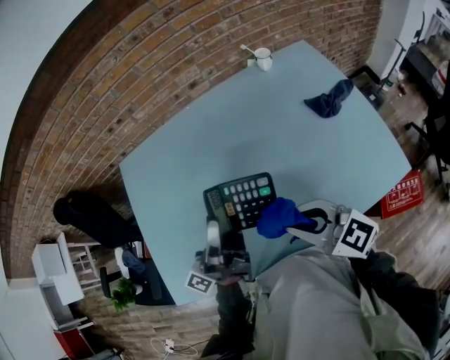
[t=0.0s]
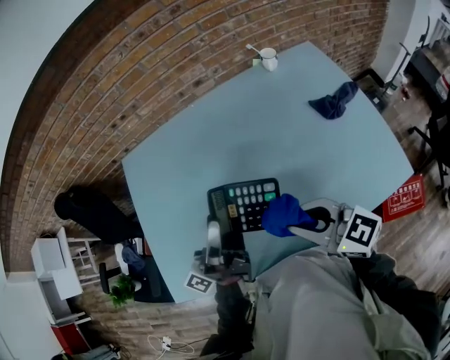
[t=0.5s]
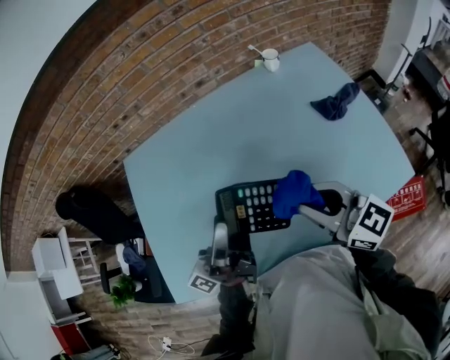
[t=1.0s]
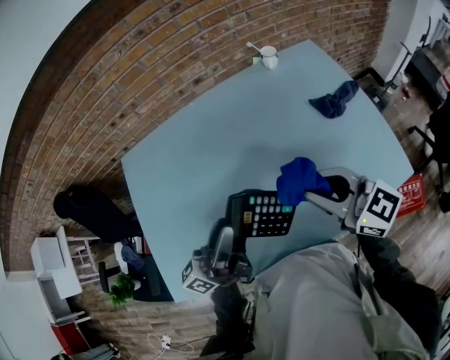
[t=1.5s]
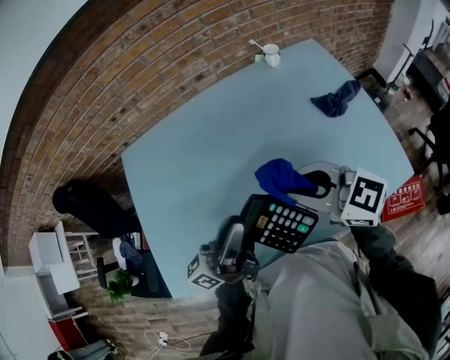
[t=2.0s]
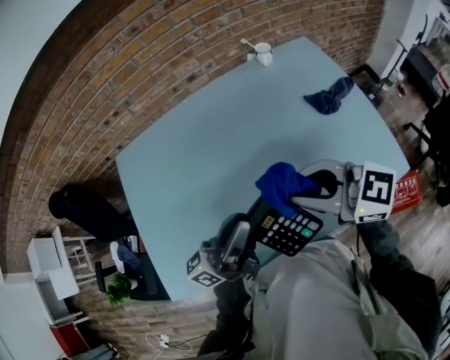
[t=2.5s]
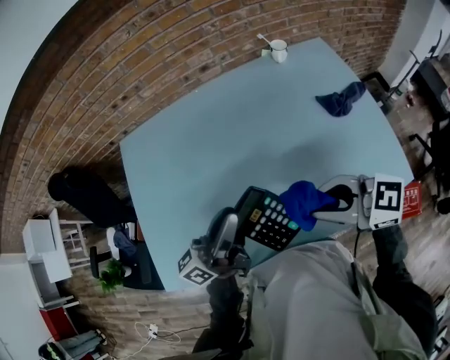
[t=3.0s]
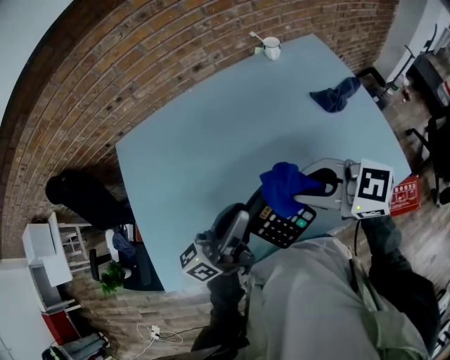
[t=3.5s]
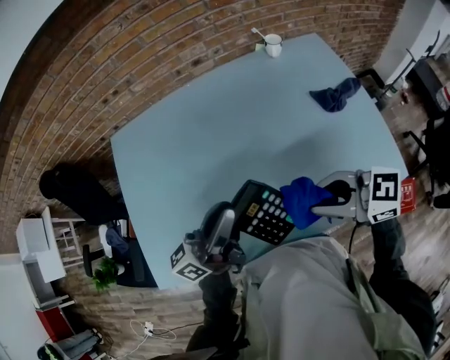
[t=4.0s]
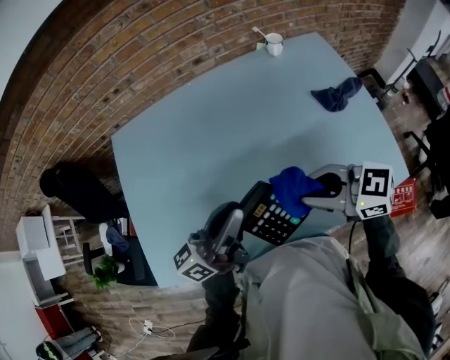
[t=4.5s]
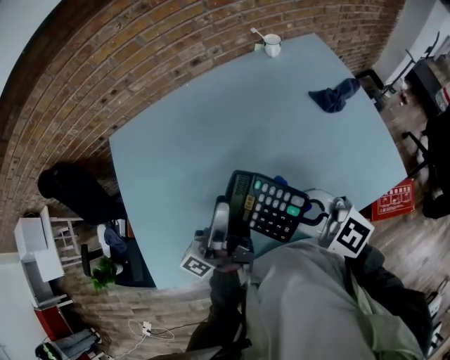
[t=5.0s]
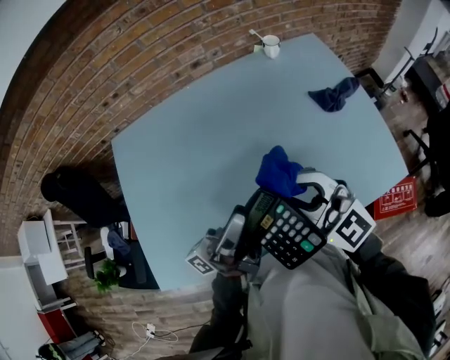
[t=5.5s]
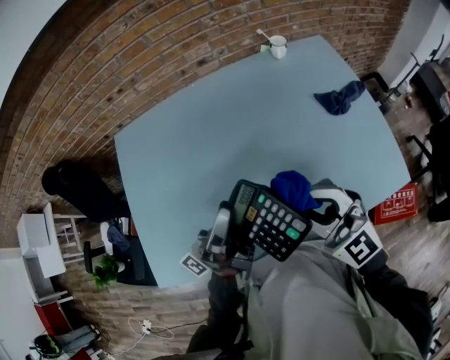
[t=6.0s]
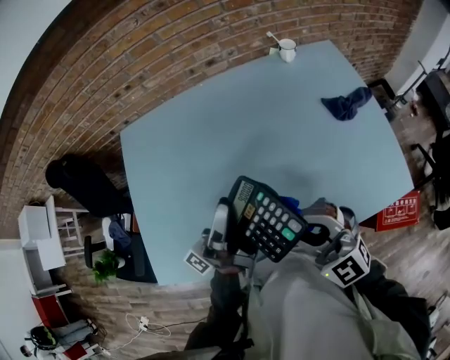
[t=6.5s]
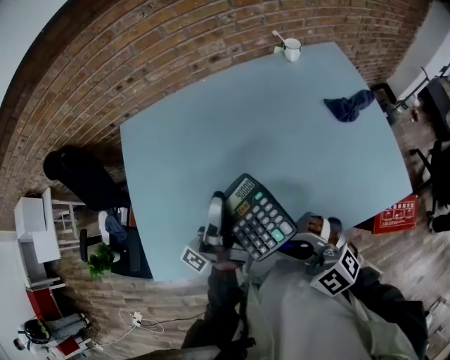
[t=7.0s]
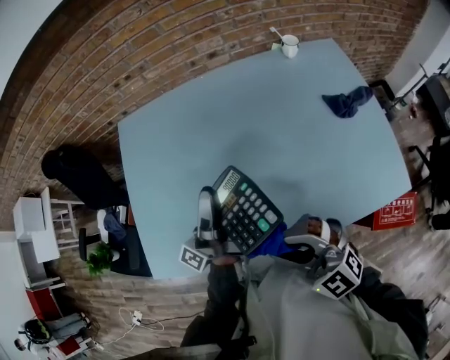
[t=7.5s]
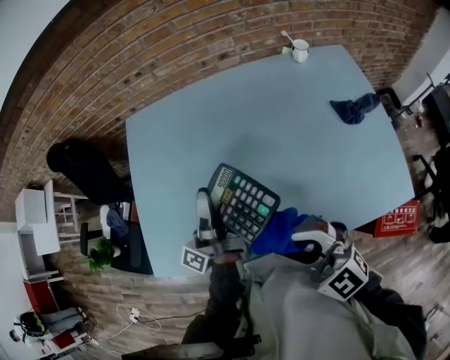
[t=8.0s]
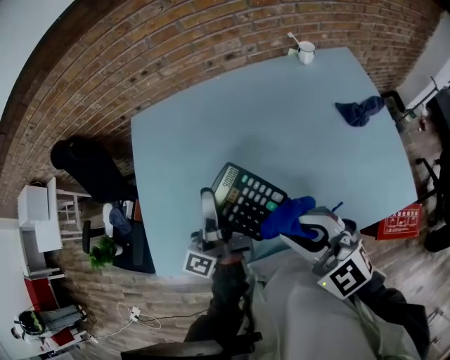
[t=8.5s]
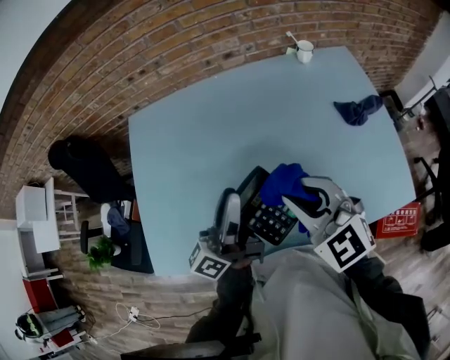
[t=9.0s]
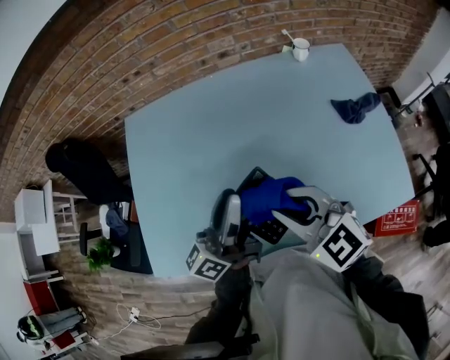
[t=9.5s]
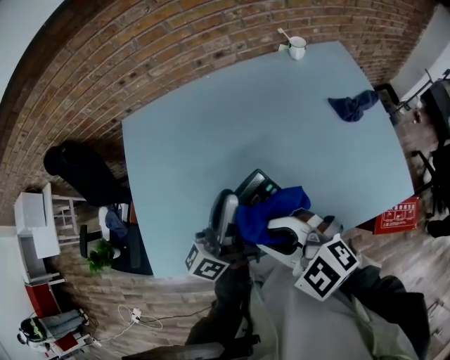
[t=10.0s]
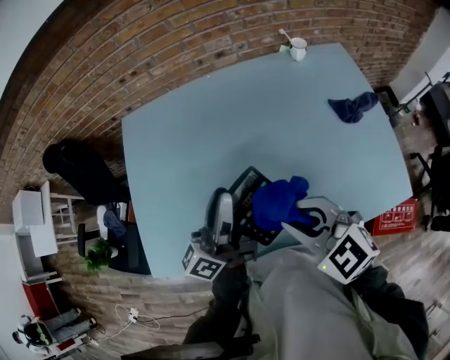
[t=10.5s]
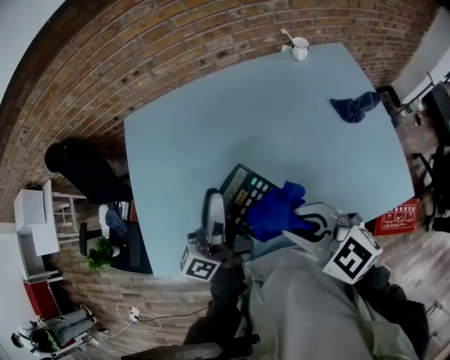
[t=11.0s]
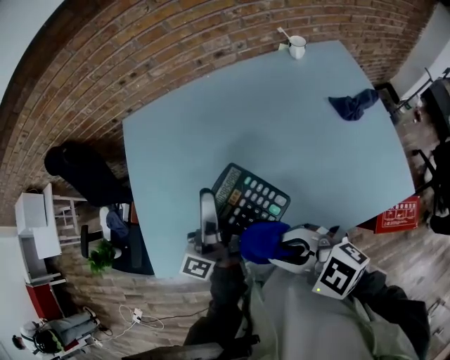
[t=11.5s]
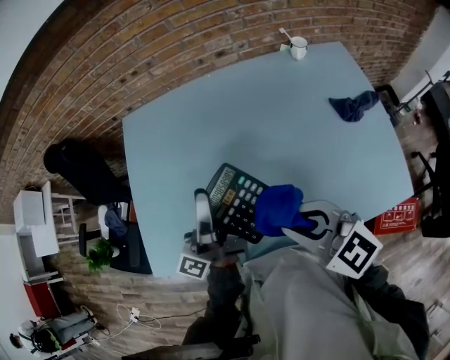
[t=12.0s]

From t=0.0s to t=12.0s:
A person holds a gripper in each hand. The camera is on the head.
From t=0.0s to t=2.0s: The right gripper goes approximately 5 cm forward. Meanwhile the left gripper shifts by about 5 cm, and turns by roughly 20 degrees.
From t=2.0s to t=4.0s: The right gripper swings forward and backward, approximately 5 cm each way, with 2 reversals, and changes its angle by approximately 20 degrees.
From t=4.0s to t=6.0s: The right gripper changes its angle by approximately 50 degrees. The left gripper changes its angle by approximately 30 degrees.
From t=6.0s to t=8.0s: The right gripper moves to the left, approximately 10 cm, while the left gripper shifts roughly 10 cm to the left and forward, and rotates roughly 30 degrees.
From t=8.0s to t=10.0s: The right gripper swivels roughly 20 degrees, while the left gripper heads to the right, covering roughly 5 cm, and changes its angle by roughly 40 degrees.
From t=10.0s to t=12.0s: The left gripper moves some 5 cm, and swivels roughly 20 degrees. The right gripper swings left and right, some 5 cm each way, with 2 reversals.

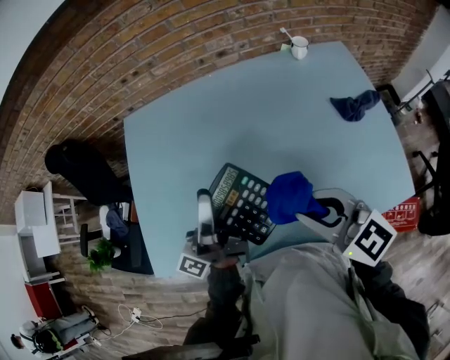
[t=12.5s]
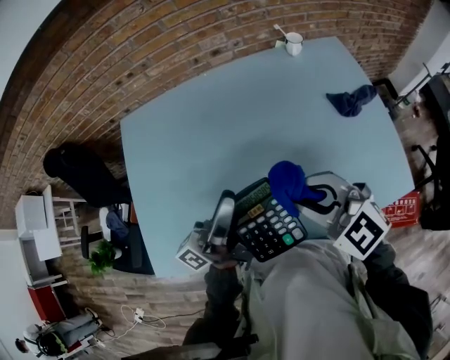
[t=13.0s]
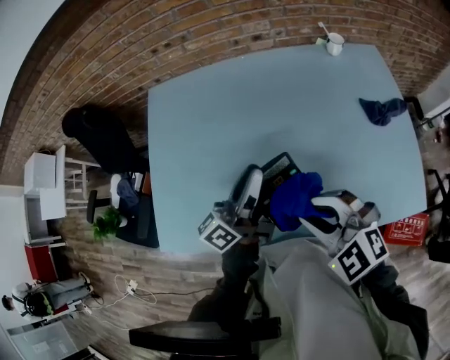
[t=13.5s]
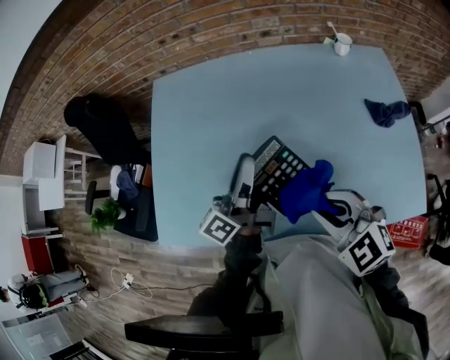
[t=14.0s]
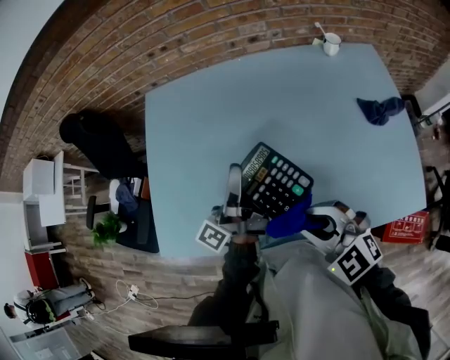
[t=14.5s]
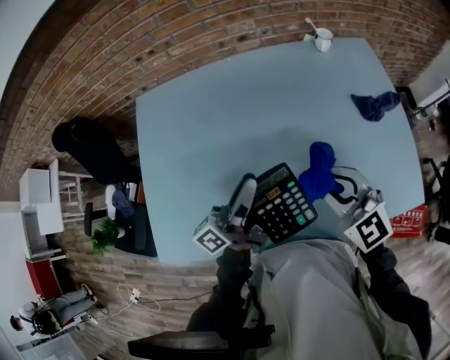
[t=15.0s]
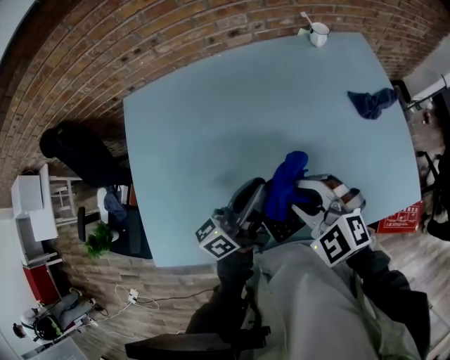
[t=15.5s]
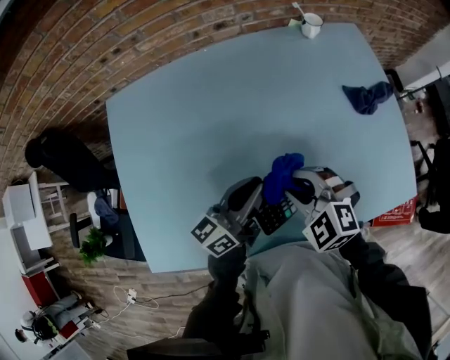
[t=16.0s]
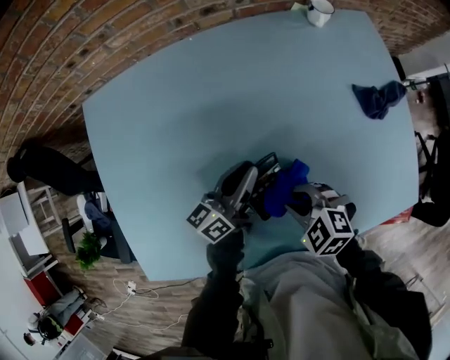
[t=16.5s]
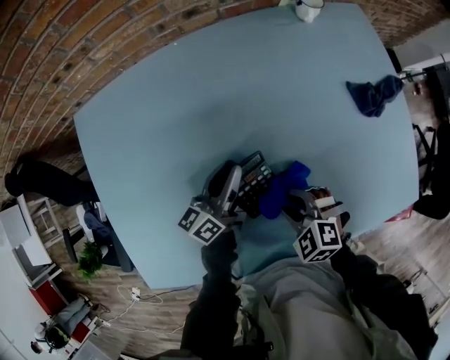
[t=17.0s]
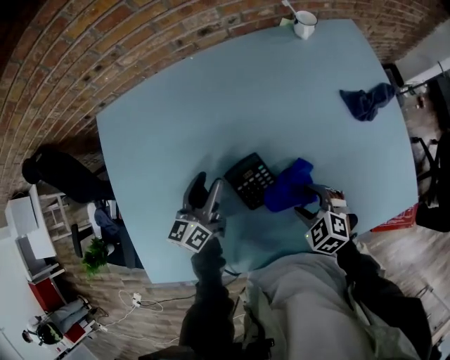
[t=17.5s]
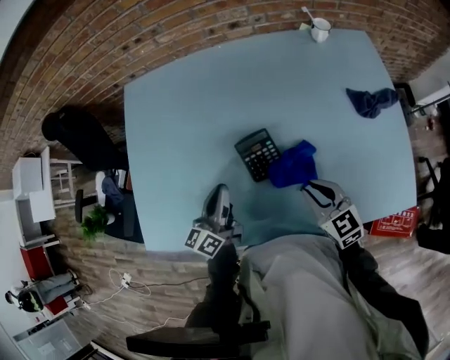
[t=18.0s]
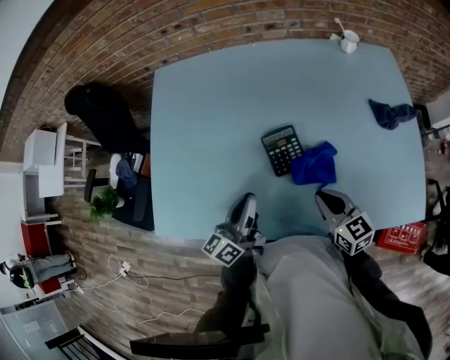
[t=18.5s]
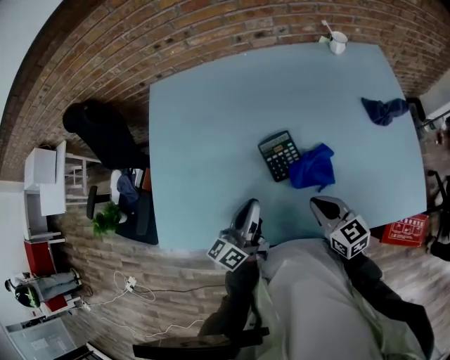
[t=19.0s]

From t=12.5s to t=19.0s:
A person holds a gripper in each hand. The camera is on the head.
From t=12.5s to t=14.5s: The left gripper heads downward, covering roughly 5 cm. The right gripper heads downward and to the left, covering approximately 10 cm, and changes its angle by some 30 degrees.
From t=14.5s to t=17.0s: Both grippers move downward, about 20 cm. The left gripper turns by about 50 degrees; the right gripper changes its angle by some 30 degrees.
From t=17.0s to t=19.0s: The left gripper travels backward and to the left by about 25 cm, and opens, then closes again; the right gripper travels backward and upward by approximately 15 cm, points its fingers some 30 degrees further upward, and closes its fingers.

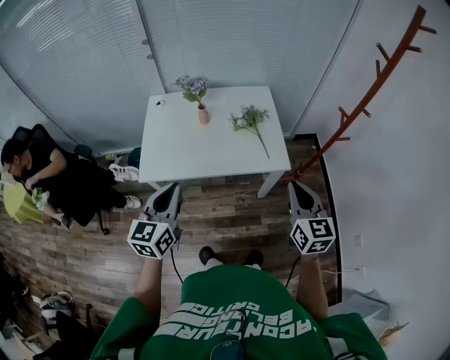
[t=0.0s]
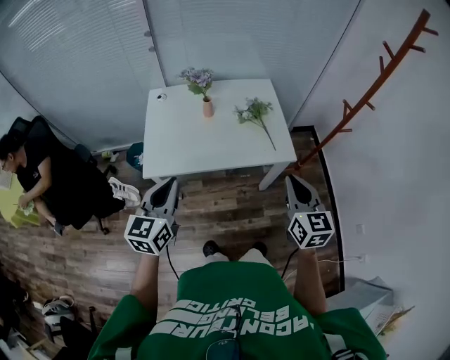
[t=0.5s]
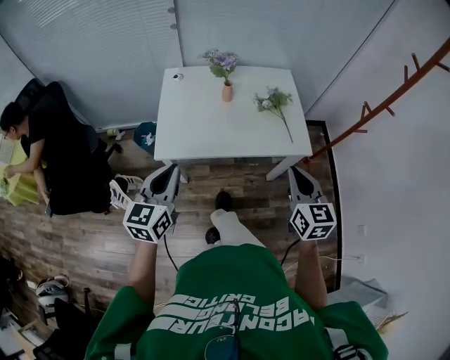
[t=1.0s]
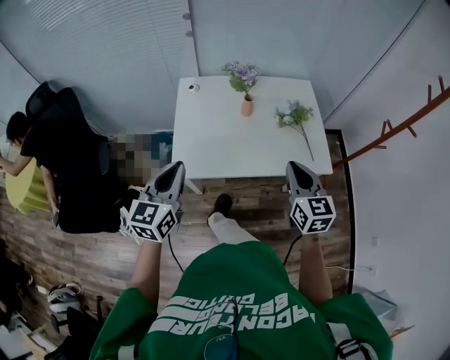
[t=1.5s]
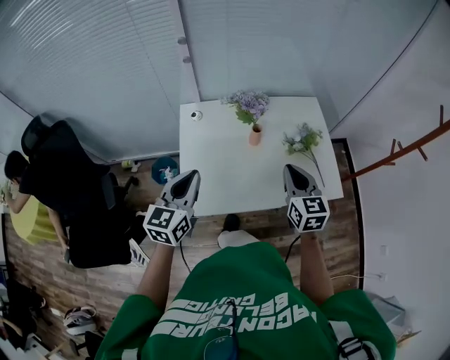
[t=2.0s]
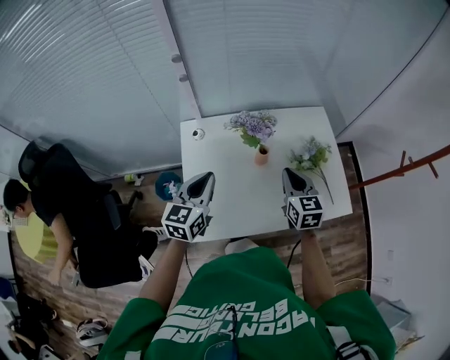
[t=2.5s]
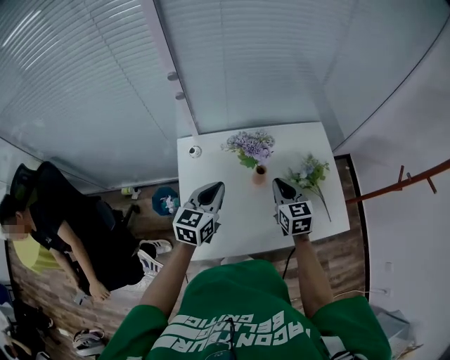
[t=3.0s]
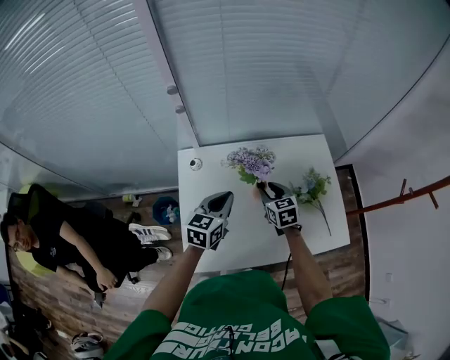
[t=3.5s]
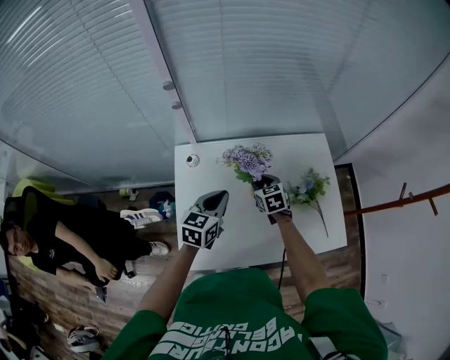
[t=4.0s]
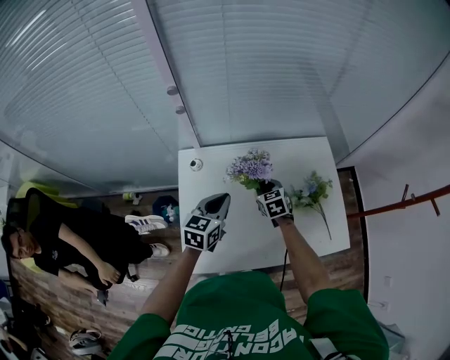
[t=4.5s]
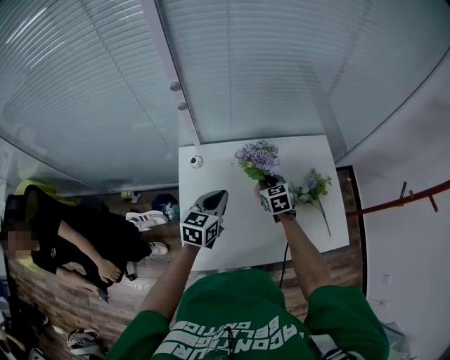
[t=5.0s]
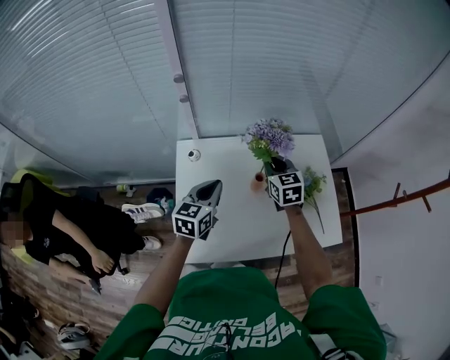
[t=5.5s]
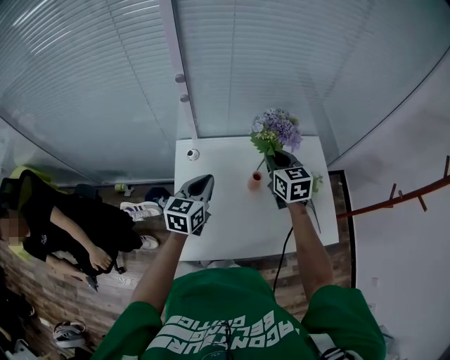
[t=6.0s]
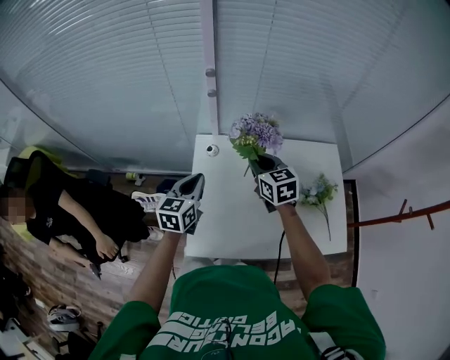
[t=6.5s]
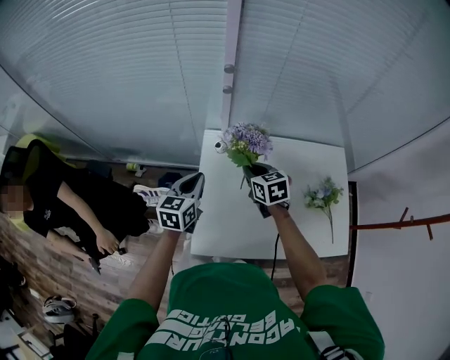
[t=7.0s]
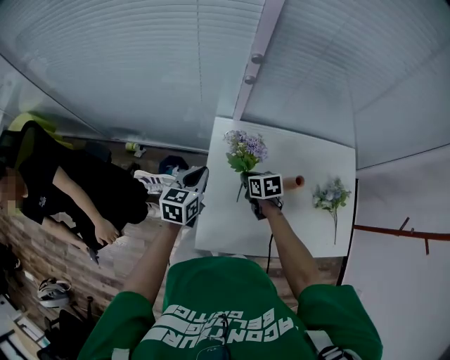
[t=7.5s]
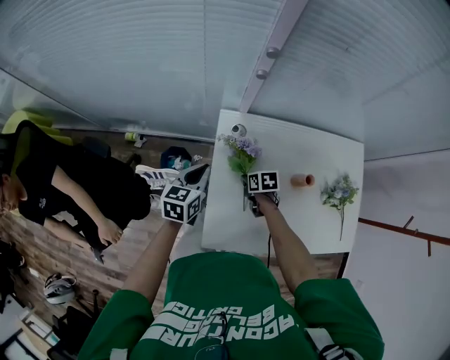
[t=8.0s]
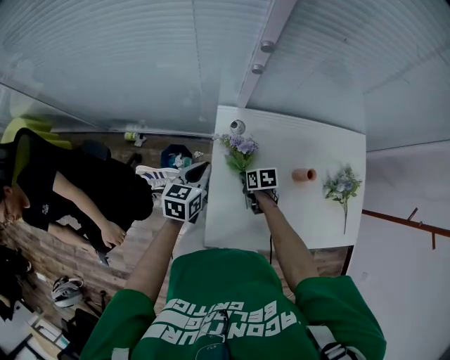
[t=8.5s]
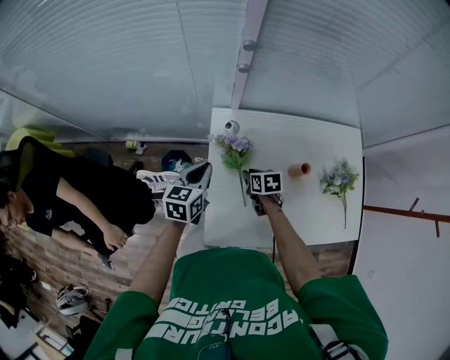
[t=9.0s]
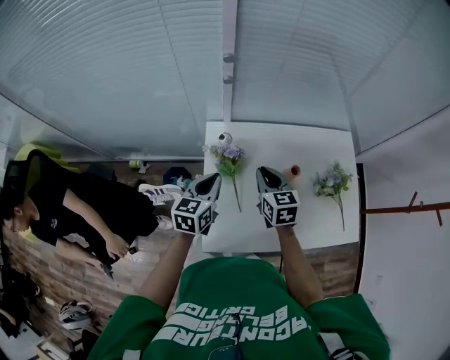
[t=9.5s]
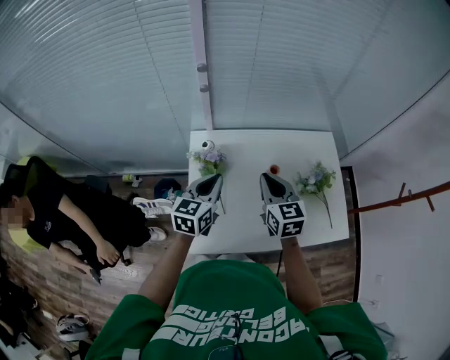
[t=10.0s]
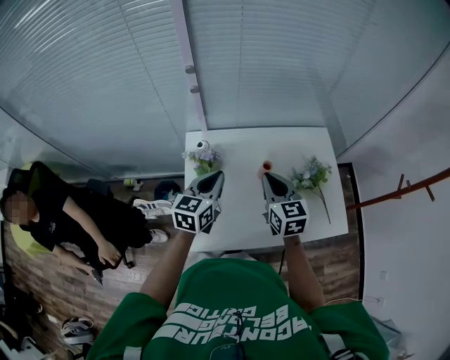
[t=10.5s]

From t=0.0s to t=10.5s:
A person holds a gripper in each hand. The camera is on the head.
From t=0.0s to t=2.0s: The right gripper moves to the left and forward, some 35 cm. The left gripper travels forward and to the left by some 30 cm.
From t=2.0s to t=4.0s: The two grippers go approximately 30 cm forward and downward. The right gripper swivels roughly 30 degrees, and opens.
From t=4.0s to t=6.5s: The right gripper goes approximately 20 cm upward and to the left, and closes up. Meanwhile the left gripper moves to the left, approximately 15 cm.
From t=6.5s to t=8.5s: The right gripper heads downward, covering about 30 cm, and angles its fingers downward, by some 30 degrees, while the left gripper is displaced downward, to the left and forward by about 15 cm.
From t=8.5s to t=10.5s: The left gripper shifts some 25 cm to the right, upward and backward. The right gripper travels upward and to the right by approximately 35 cm, and tilts its fingers some 40 degrees upward.
